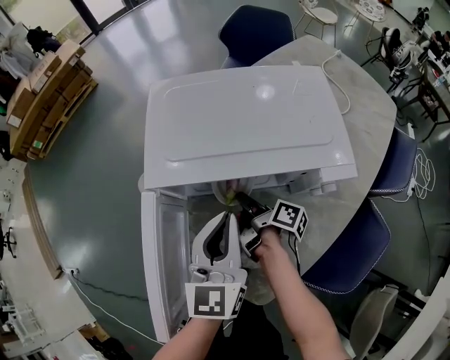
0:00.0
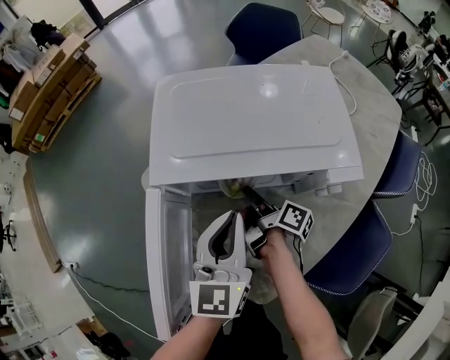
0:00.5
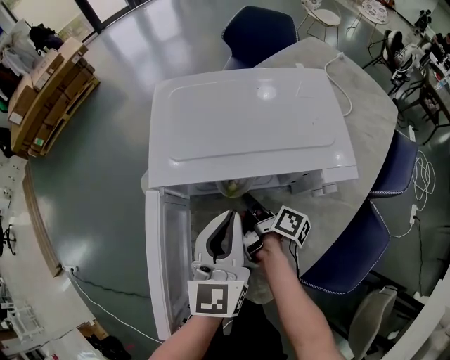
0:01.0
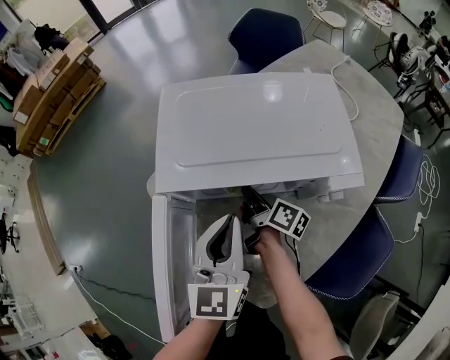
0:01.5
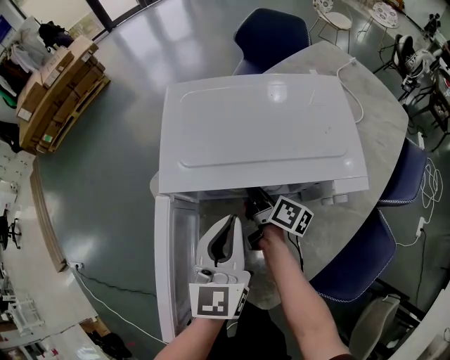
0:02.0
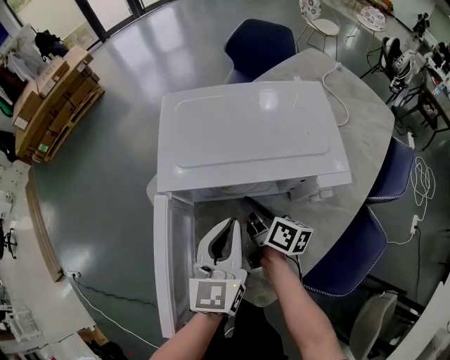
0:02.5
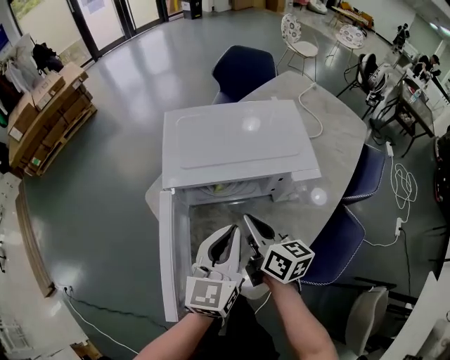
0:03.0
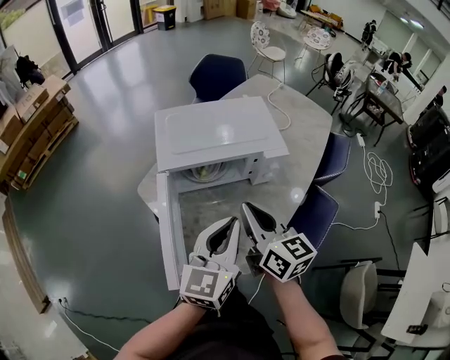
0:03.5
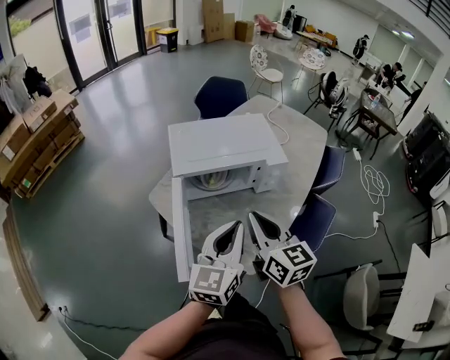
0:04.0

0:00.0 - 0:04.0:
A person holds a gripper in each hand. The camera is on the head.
0:02.0 - 0:04.0: The left gripper ends up about 25 cm from where it was, and turns by approximately 30 degrees.

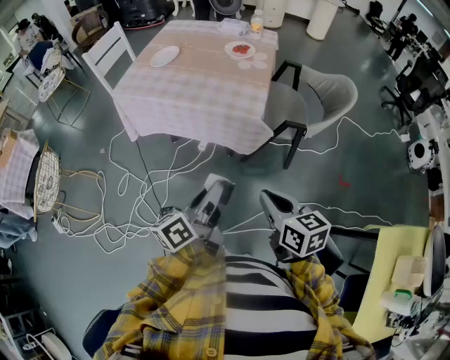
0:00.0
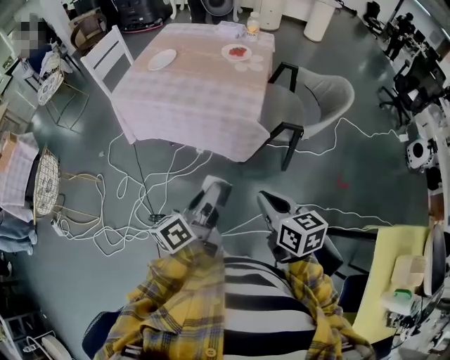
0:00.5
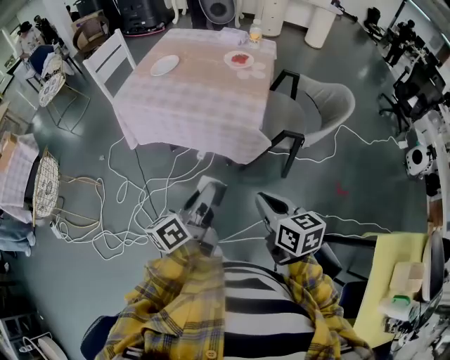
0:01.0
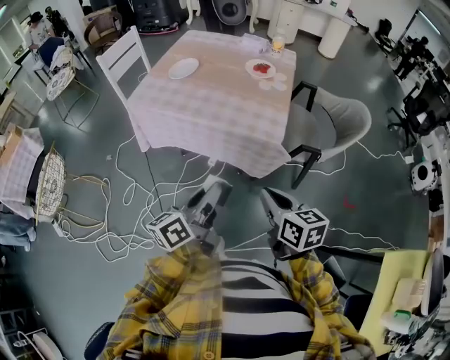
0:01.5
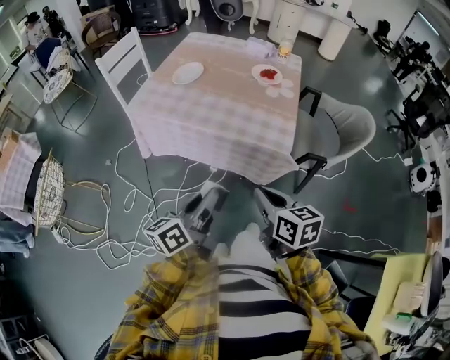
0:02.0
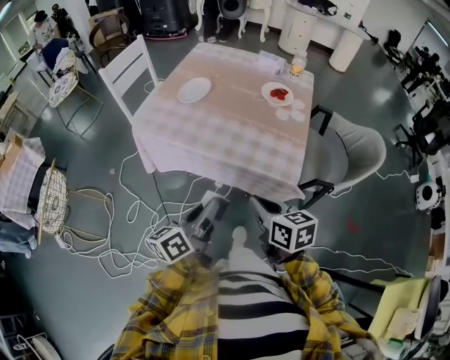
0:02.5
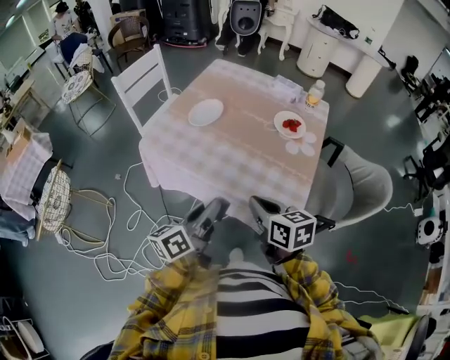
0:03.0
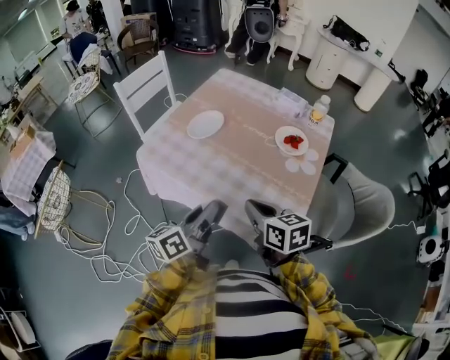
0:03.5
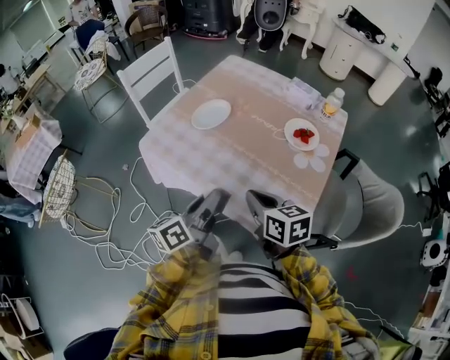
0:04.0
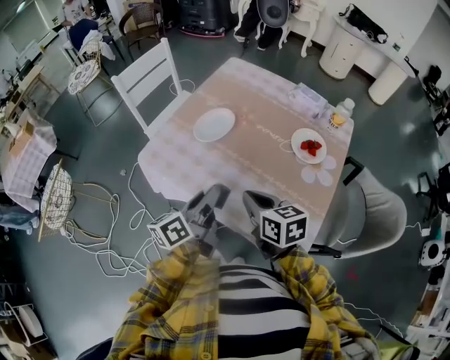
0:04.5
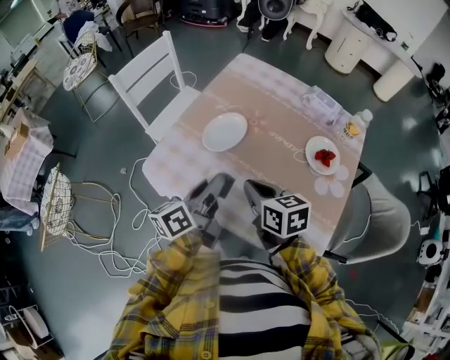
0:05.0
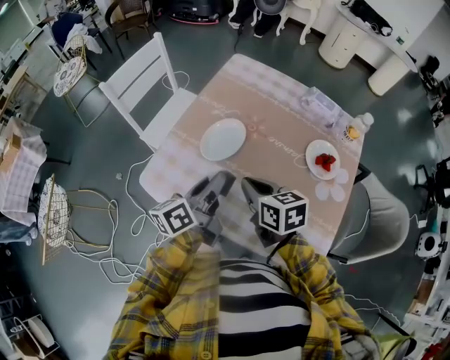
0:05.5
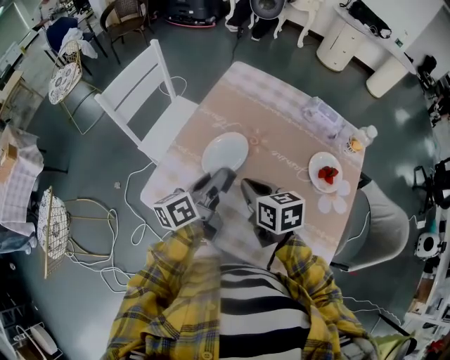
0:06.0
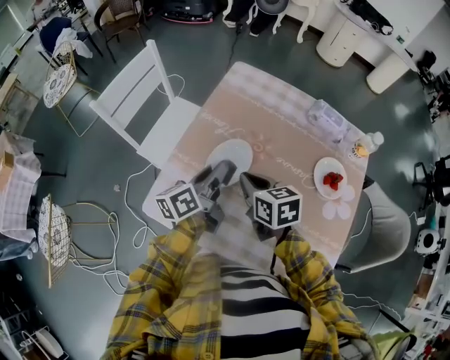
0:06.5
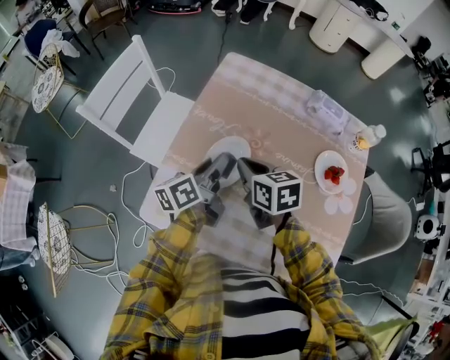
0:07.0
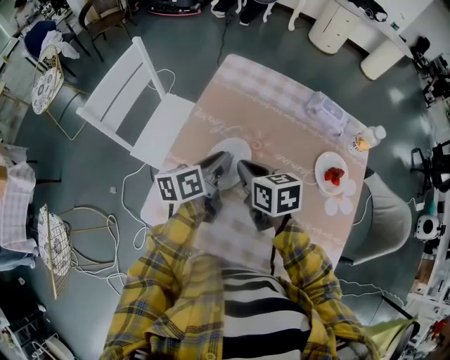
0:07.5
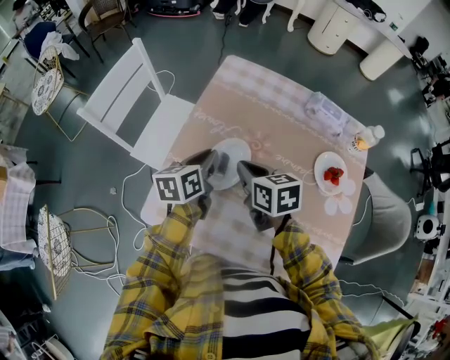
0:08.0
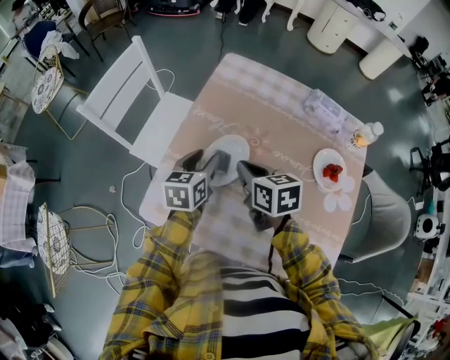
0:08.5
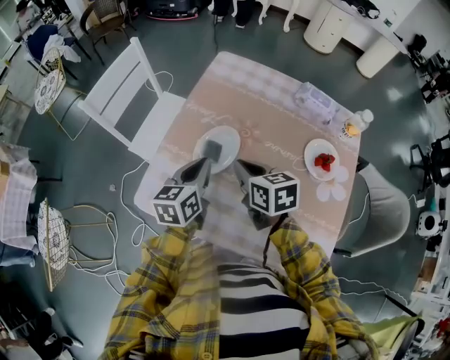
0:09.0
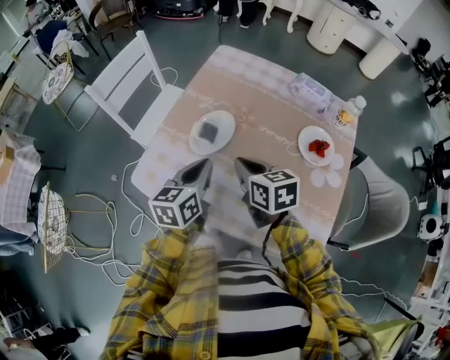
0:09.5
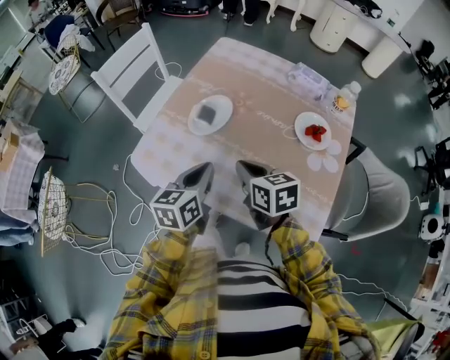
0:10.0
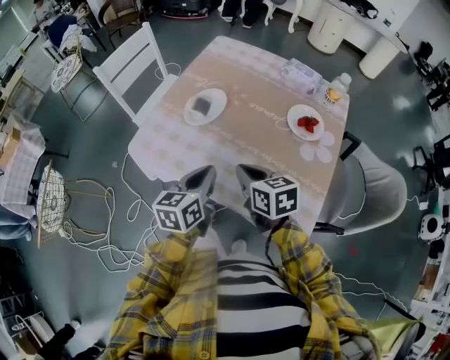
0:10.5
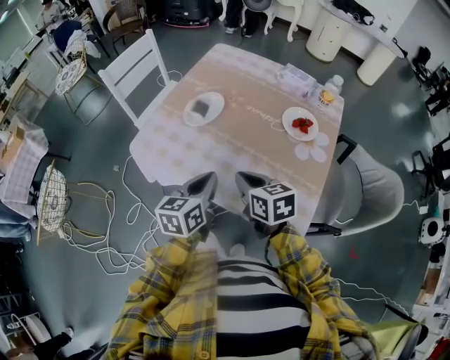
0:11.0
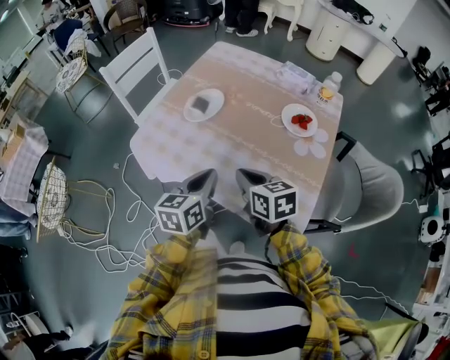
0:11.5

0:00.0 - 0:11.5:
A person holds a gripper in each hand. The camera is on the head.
0:00.0 - 0:02.0: The left gripper heads to the left and forward, covering some 15 cm. The right gripper goes about 15 cm forward and to the left.
0:02.0 - 0:04.0: The two grippers go approximately 25 cm forward.
0:04.0 - 0:06.0: Both grippers move forward, approximately 25 cm.
0:06.0 - 0:07.5: The grippers both shift forward by some 10 cm.
0:07.5 - 0:09.5: The two grippers go roughly 10 cm backward. The left gripper turns by roughly 30 degrees, and opens, then closes again.
0:09.5 - 0:11.5: Both grippers move backward, roughly 15 cm.

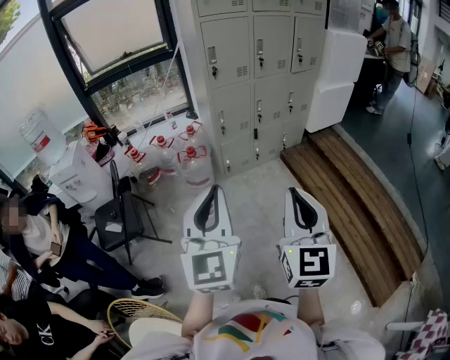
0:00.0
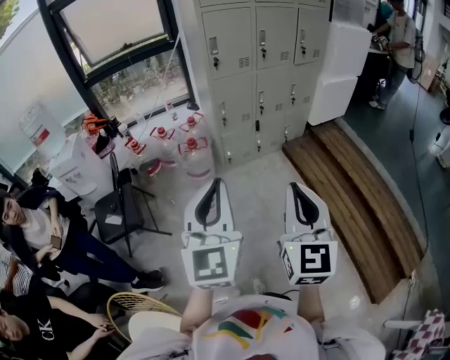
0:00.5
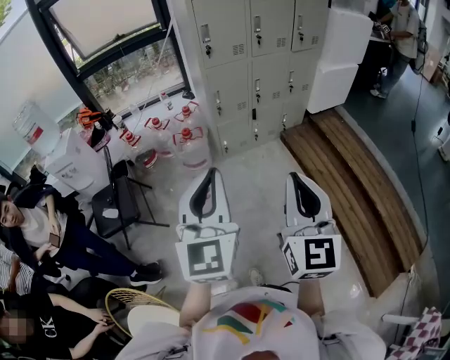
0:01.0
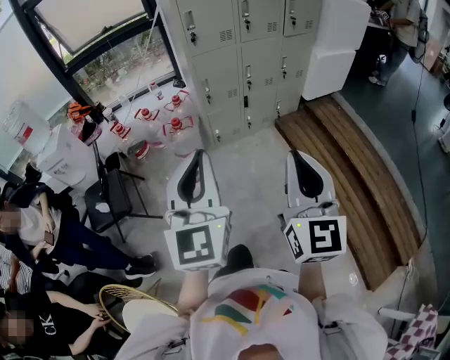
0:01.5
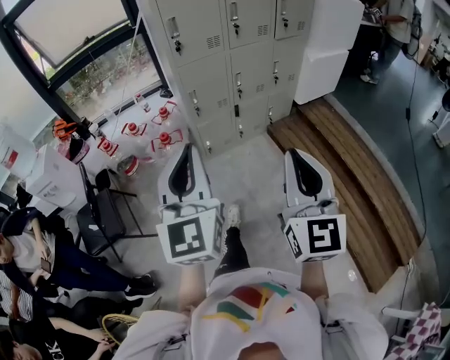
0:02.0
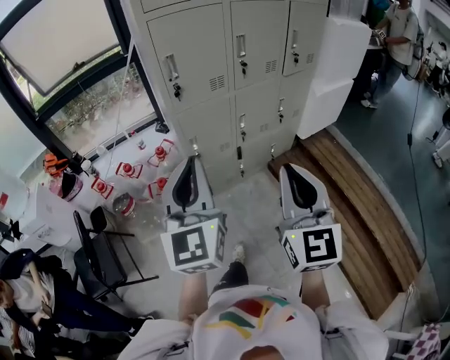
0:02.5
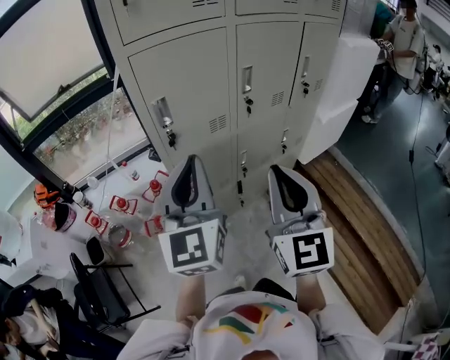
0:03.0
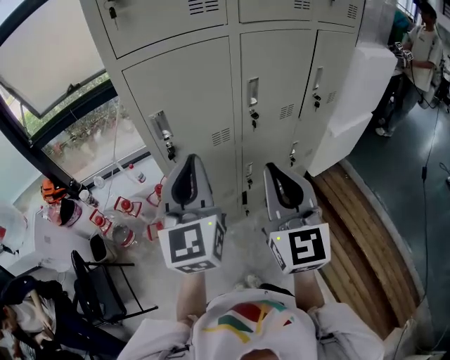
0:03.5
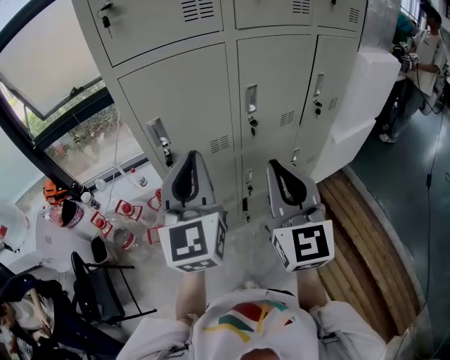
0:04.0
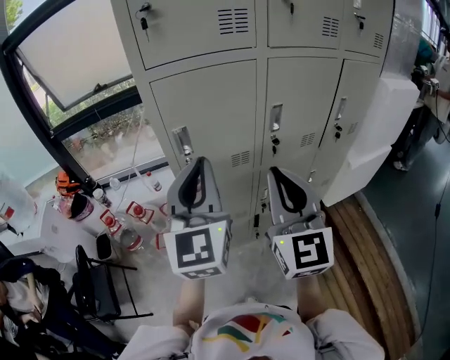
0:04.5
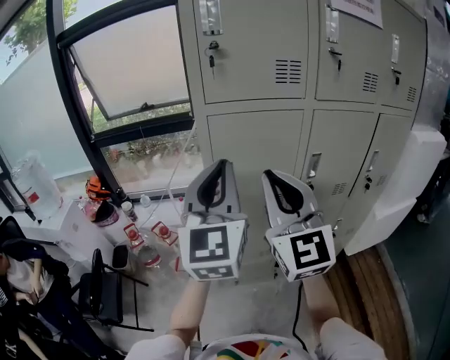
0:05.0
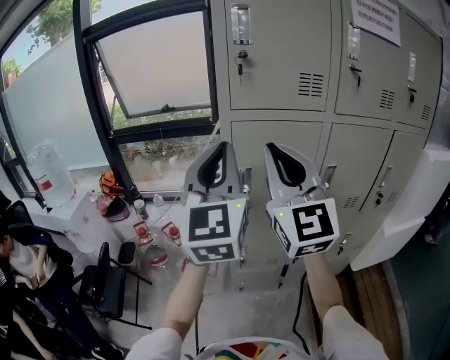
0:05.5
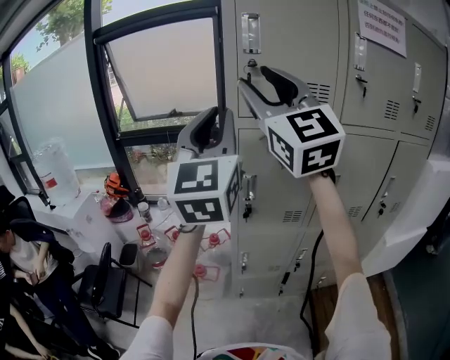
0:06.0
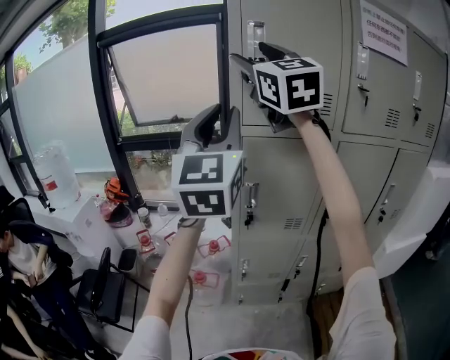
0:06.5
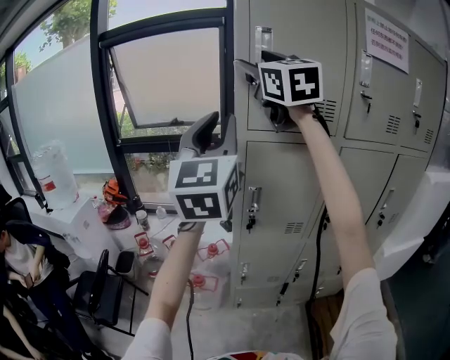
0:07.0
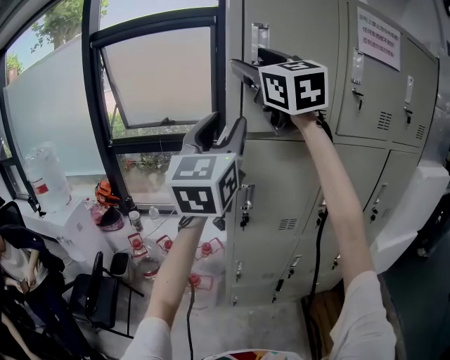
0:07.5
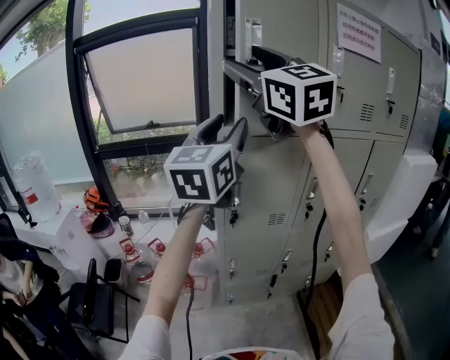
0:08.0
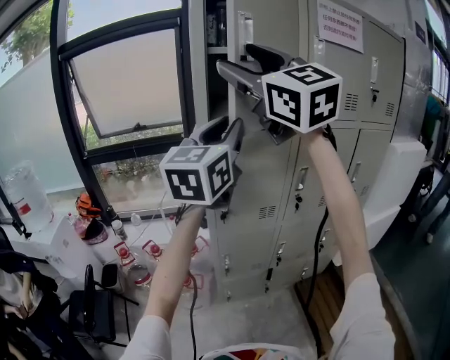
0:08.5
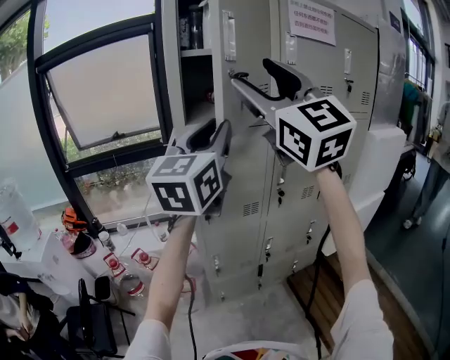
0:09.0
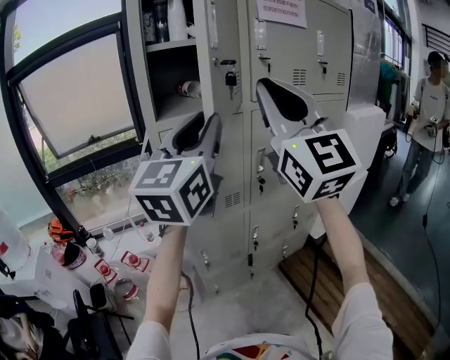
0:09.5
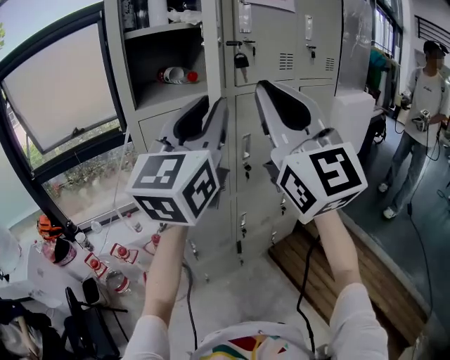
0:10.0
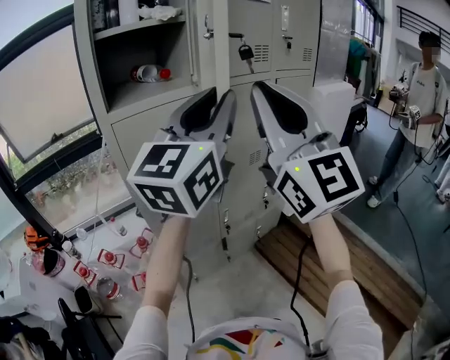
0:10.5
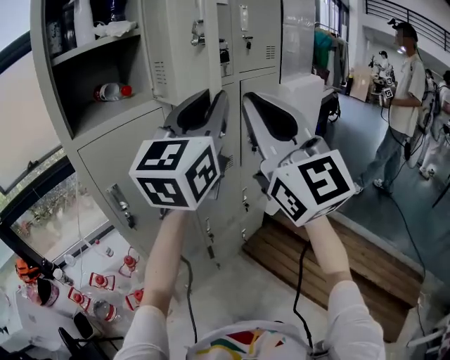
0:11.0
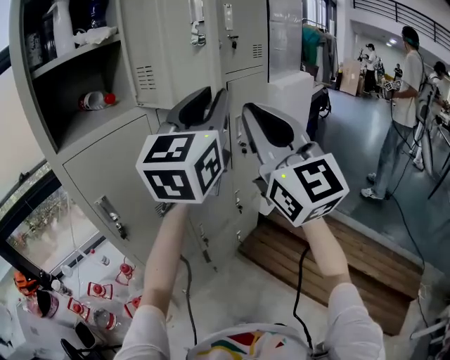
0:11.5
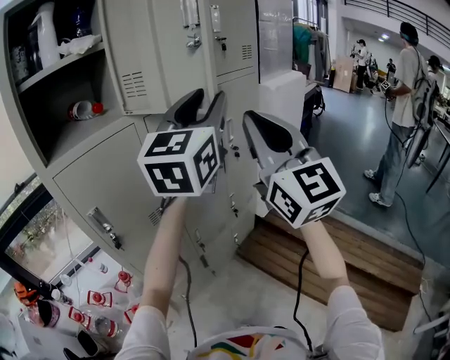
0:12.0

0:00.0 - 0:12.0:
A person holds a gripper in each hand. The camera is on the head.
0:00.0 - 0:02.0: The left gripper goes roughly 20 cm forward, while the right gripper travels forward and to the right by some 20 cm.
0:02.0 - 0:04.0: The two grippers travel together, forward, about 50 cm.
0:04.0 - 0:06.0: Both grippers travel together upward, about 25 cm. The right gripper changes its angle by roughly 40 degrees, and opens, while the left gripper changes its angle by approximately 20 degrees.
0:06.0 - 0:08.0: The right gripper travels upward by roughly 5 cm, goes forward and returns, about 10 cm each way, and opens up; the left gripper ends up approximately 5 cm from where it was, changes its angle by roughly 20 degrees, and opens up.
0:08.0 - 0:10.0: The right gripper shifts roughly 25 cm to the right, backward and downward, swivels approximately 30 degrees, and closes up. Meanwhile the left gripper goes some 15 cm to the right and backward, rotates about 20 degrees, and closes.
0:10.0 - 0:12.0: The left gripper goes about 20 cm to the right and forward, while the right gripper travels to the right, forward and downward by approximately 20 cm.
